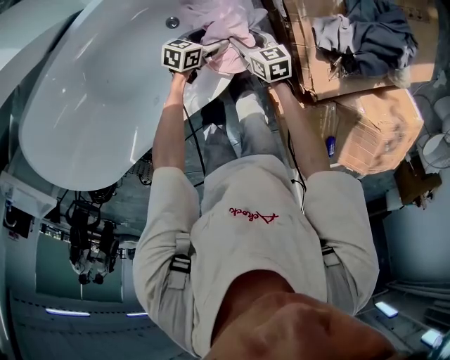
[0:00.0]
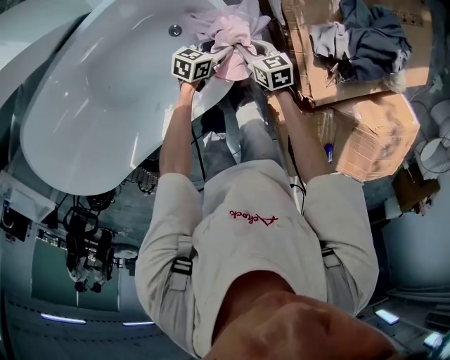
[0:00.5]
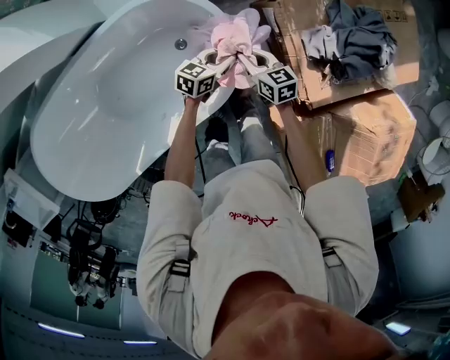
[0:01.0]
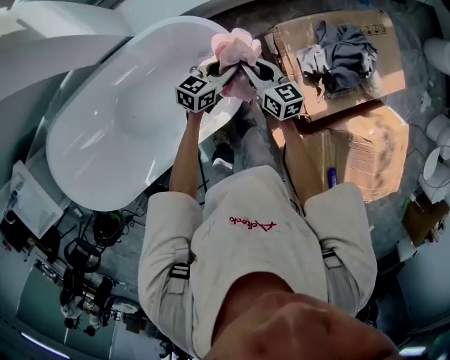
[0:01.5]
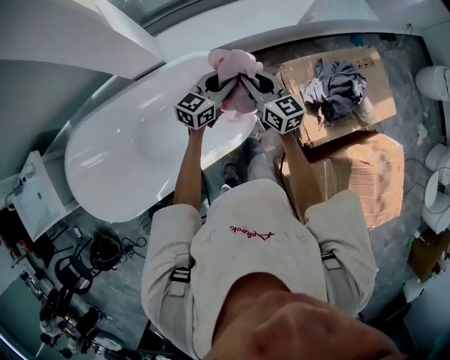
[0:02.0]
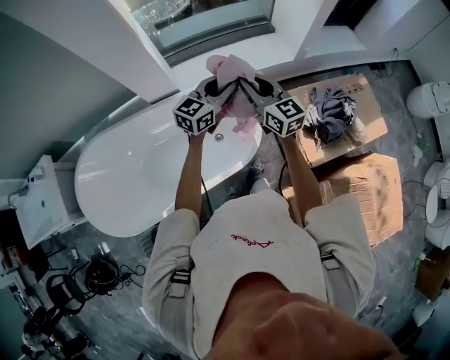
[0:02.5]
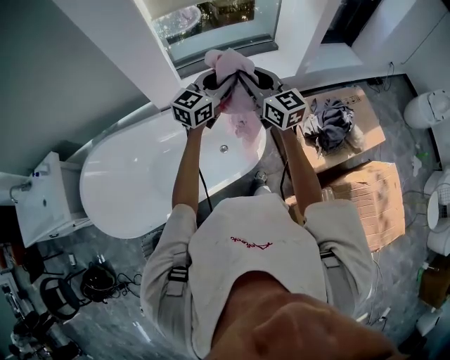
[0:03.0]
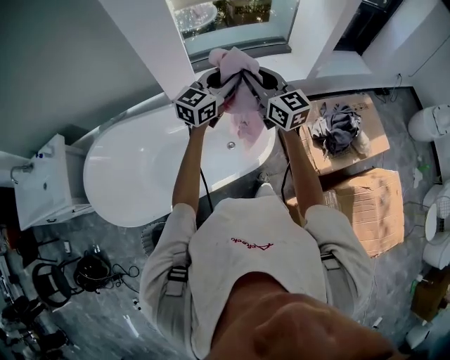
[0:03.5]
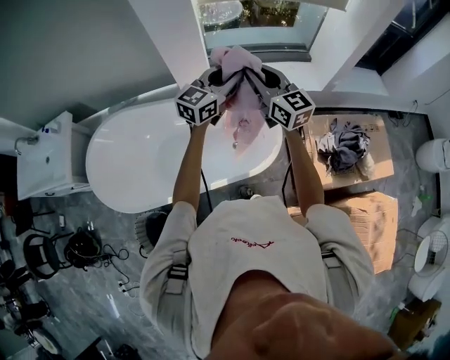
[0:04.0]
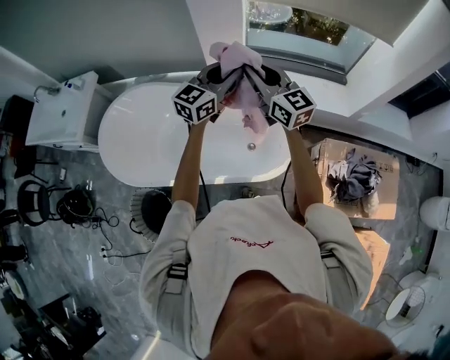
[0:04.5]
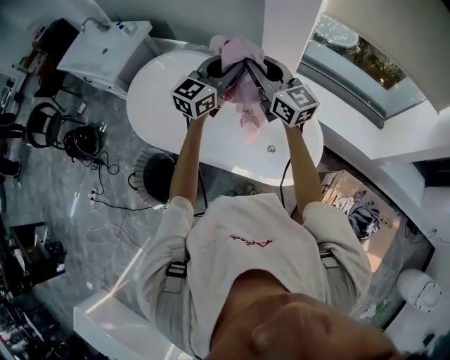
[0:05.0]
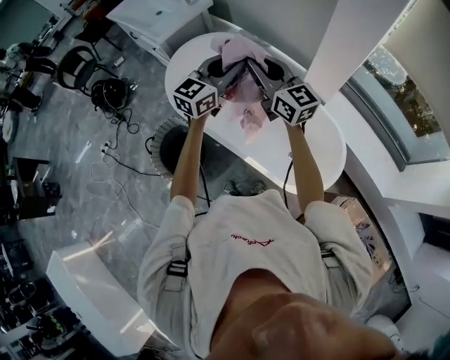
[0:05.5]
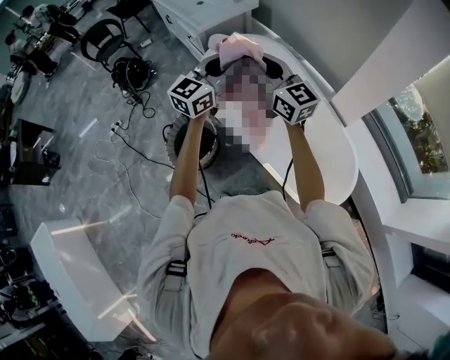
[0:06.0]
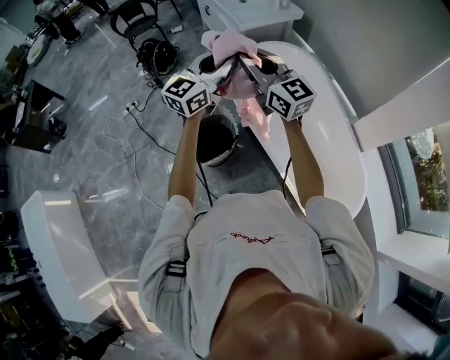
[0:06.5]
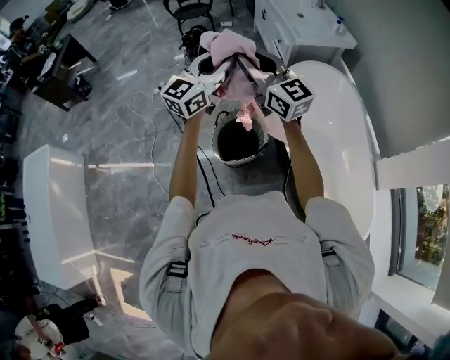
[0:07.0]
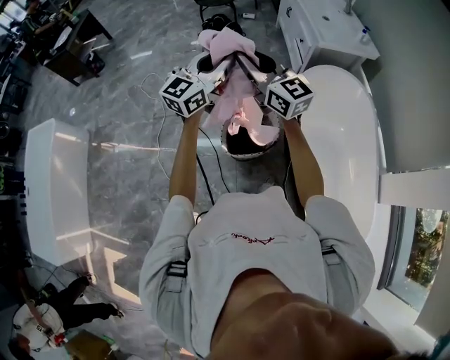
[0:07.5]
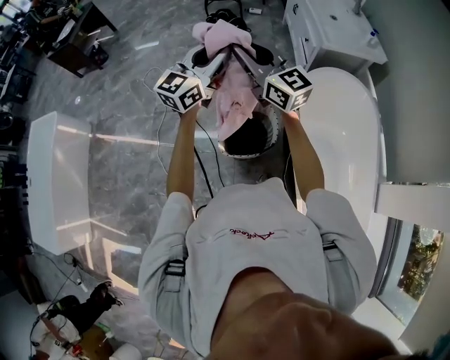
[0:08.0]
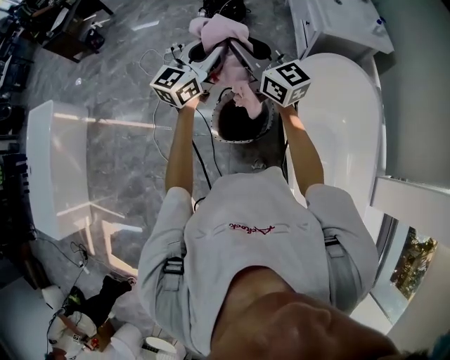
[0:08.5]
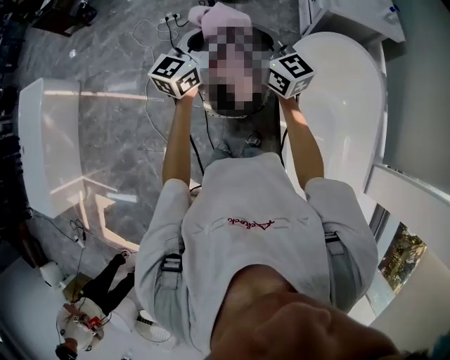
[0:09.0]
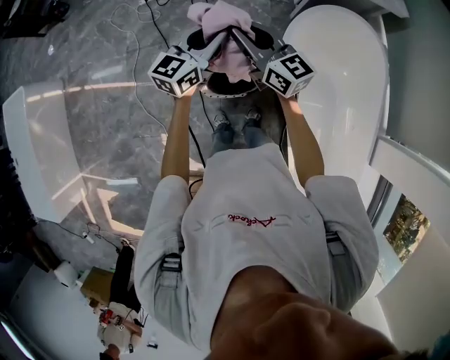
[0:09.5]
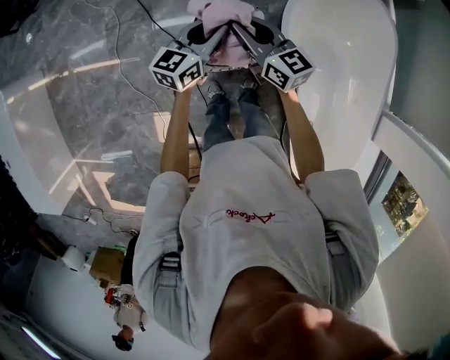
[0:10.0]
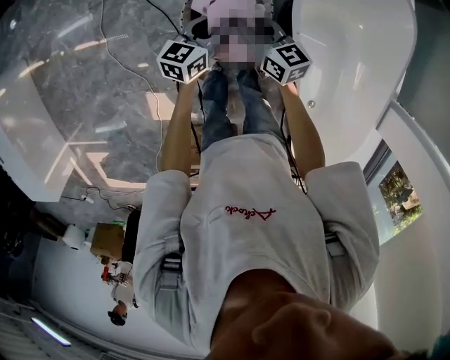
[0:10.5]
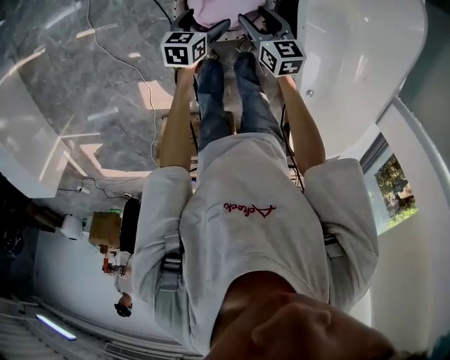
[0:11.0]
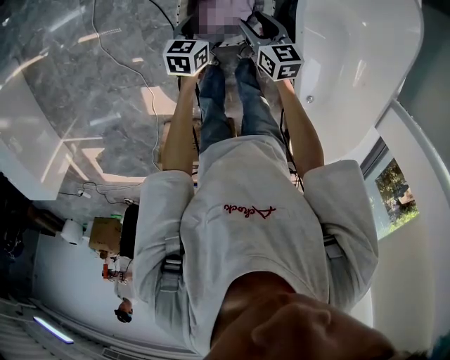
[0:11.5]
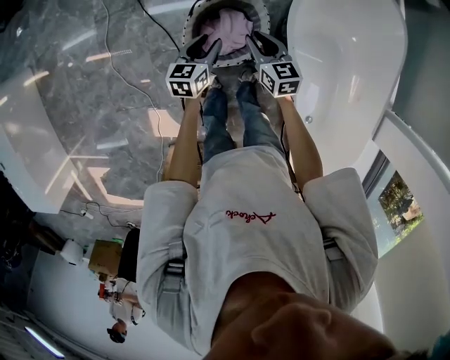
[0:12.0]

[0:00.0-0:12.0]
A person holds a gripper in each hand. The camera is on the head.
0:00.0 to 0:02.0: The two grippers go roughly 50 cm upward. The left gripper swivels approximately 50 degrees, and closes. Meanwhile the right gripper points its fingers some 40 degrees further upward, and closes its fingers.
0:02.0 to 0:04.0: The two grippers go approximately 30 cm upward and to the left. The right gripper changes its angle by roughly 20 degrees; the left gripper turns by some 20 degrees.
0:04.0 to 0:06.0: The pair of grippers is taken approximately 50 cm. The right gripper rotates roughly 70 degrees. The left gripper rotates approximately 60 degrees.
0:06.0 to 0:08.0: The pair of grippers is taken roughly 40 cm. The left gripper swivels some 40 degrees. Meanwhile the right gripper rotates approximately 40 degrees.
0:08.0 to 0:10.0: The two grippers go about 30 cm downward. The right gripper swivels about 30 degrees. Meanwhile the left gripper changes its angle by some 30 degrees.
0:10.0 to 0:12.0: The grippers both shift downward by some 20 cm. The right gripper changes its angle by some 20 degrees, and opens and closes again; the left gripper turns by approximately 20 degrees, and opens and closes again.

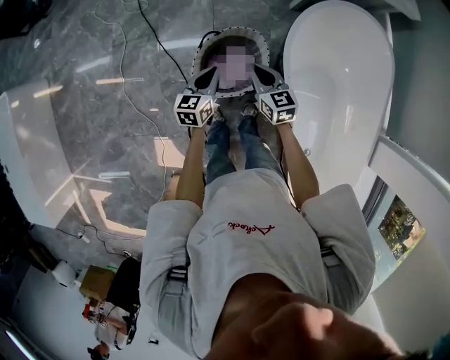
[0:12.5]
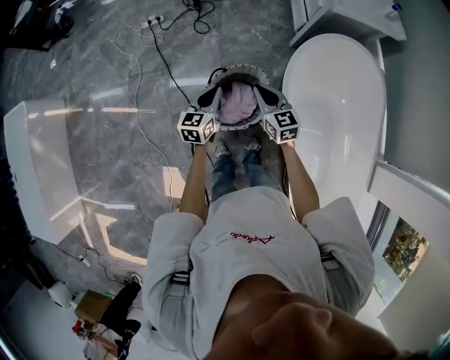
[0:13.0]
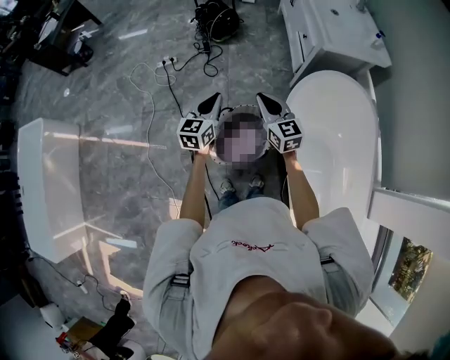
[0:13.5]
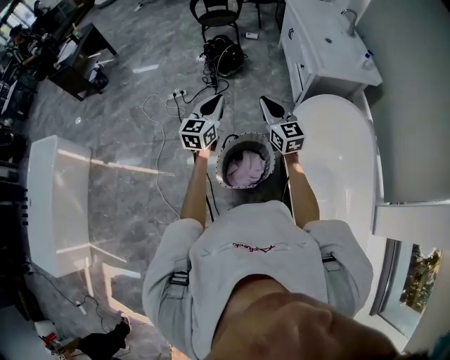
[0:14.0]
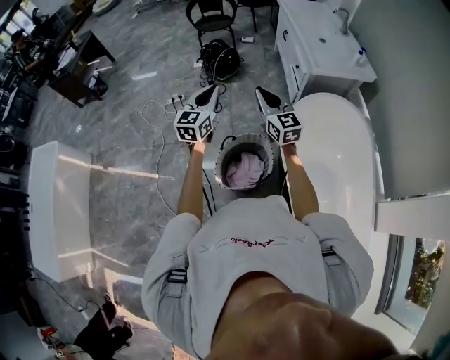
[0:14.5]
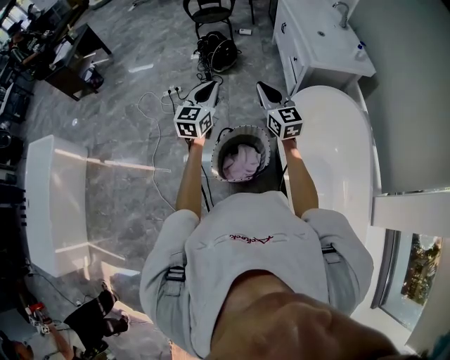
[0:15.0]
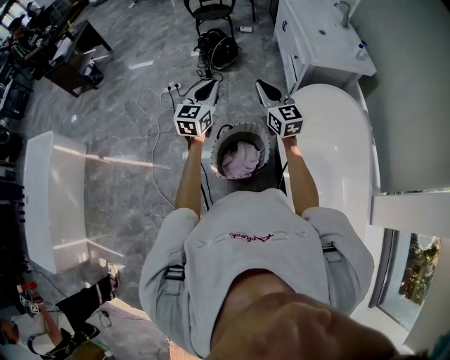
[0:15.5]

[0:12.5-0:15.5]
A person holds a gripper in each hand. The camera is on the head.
0:12.5 to 0:14.0: Both grippers travel together upward, about 30 cm. The left gripper turns by approximately 30 degrees; the right gripper turns by some 30 degrees.
0:14.0 to 0:15.5: The grippers stay close to where they were, moving slightly.

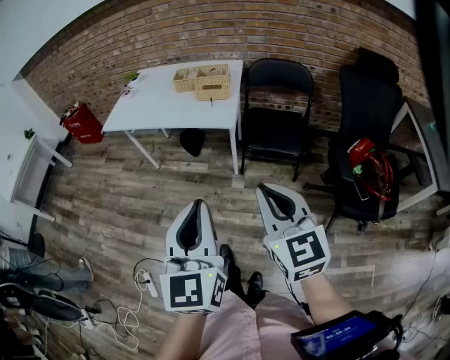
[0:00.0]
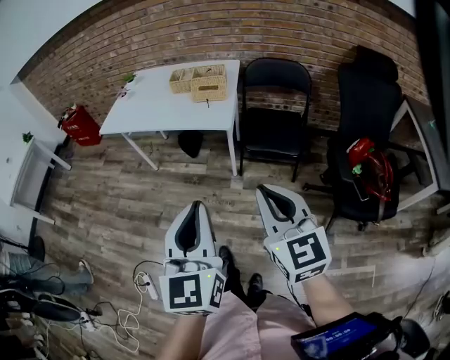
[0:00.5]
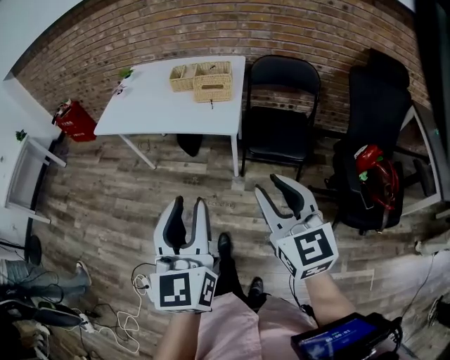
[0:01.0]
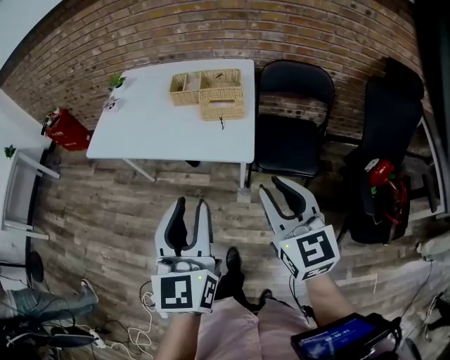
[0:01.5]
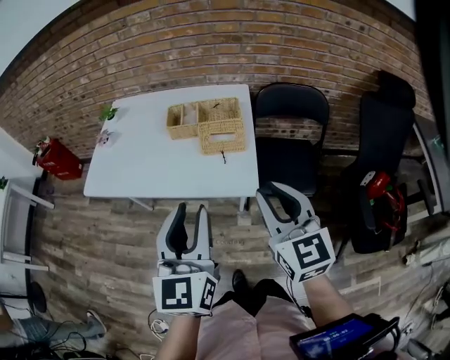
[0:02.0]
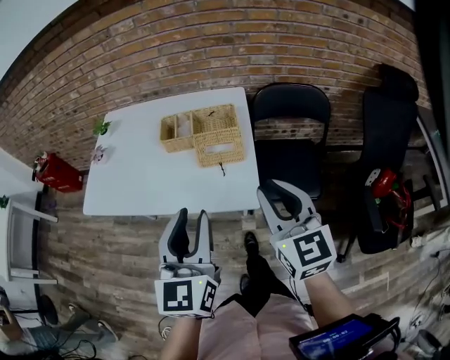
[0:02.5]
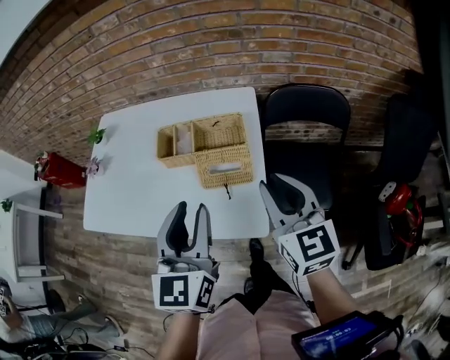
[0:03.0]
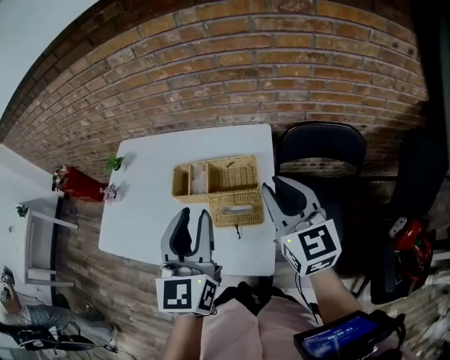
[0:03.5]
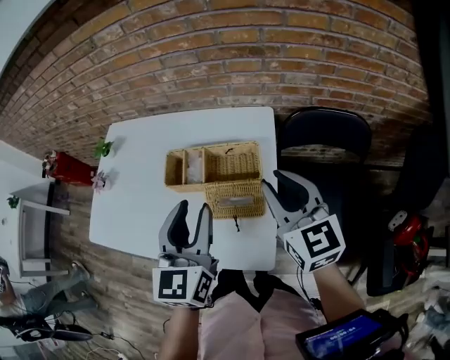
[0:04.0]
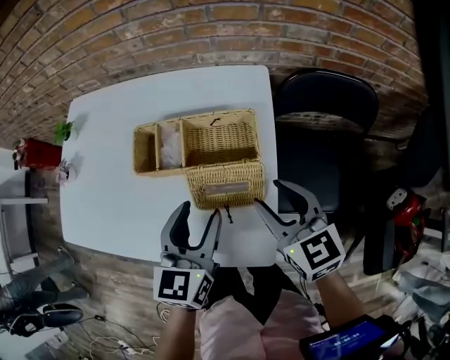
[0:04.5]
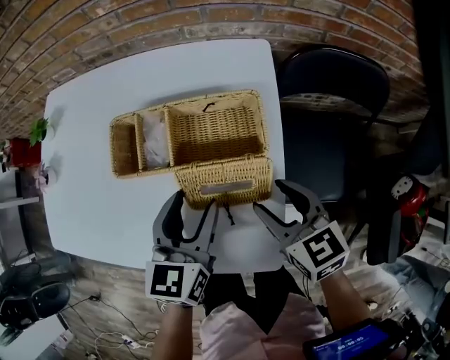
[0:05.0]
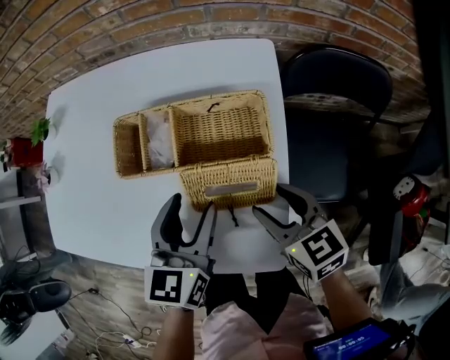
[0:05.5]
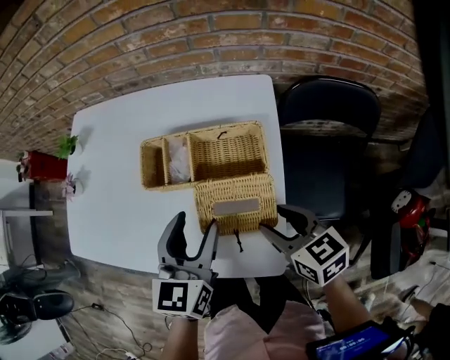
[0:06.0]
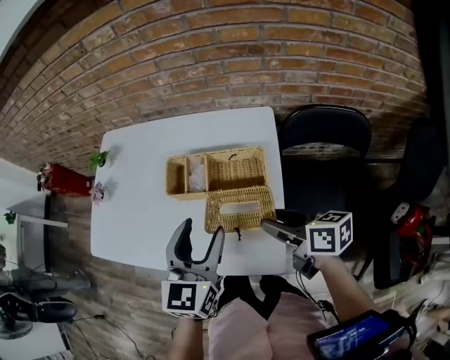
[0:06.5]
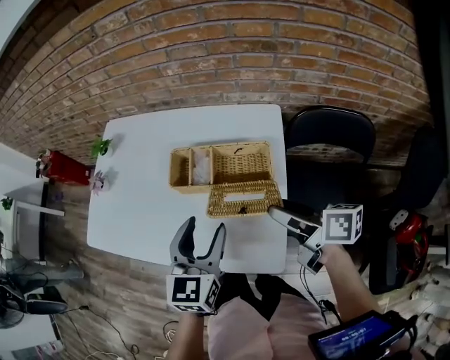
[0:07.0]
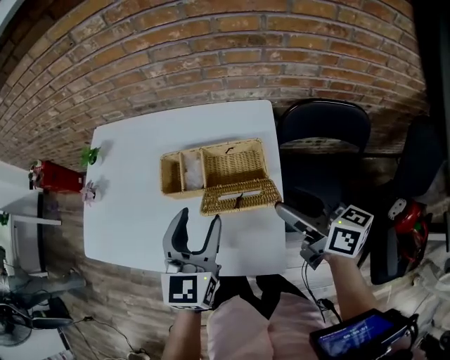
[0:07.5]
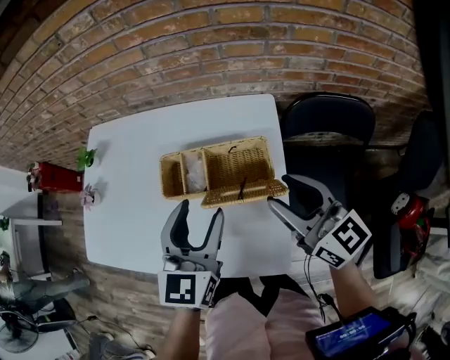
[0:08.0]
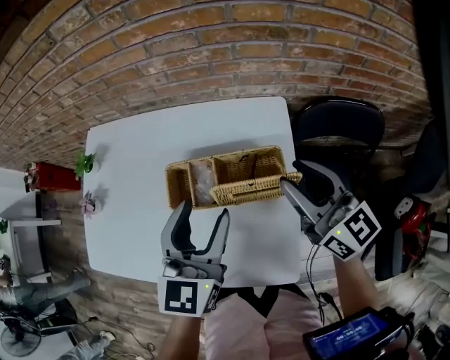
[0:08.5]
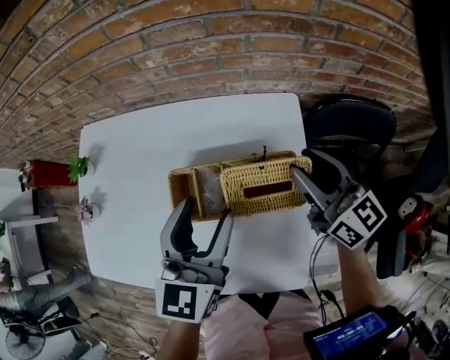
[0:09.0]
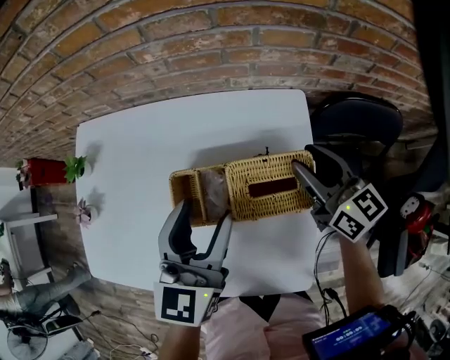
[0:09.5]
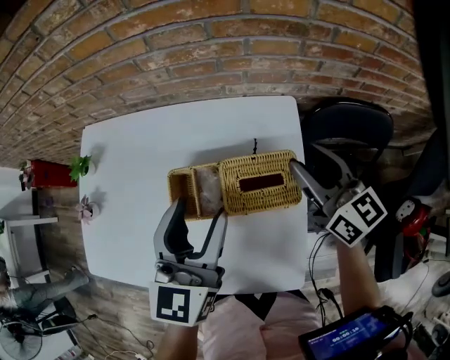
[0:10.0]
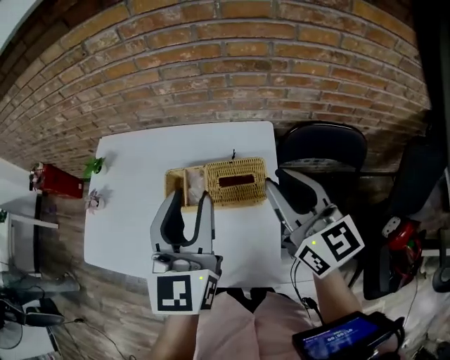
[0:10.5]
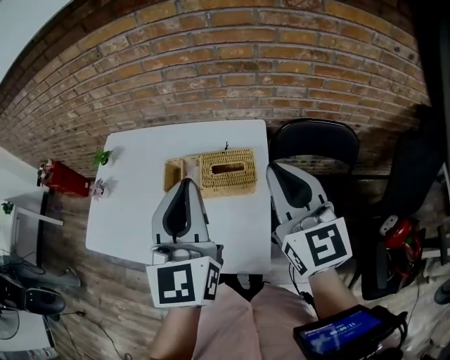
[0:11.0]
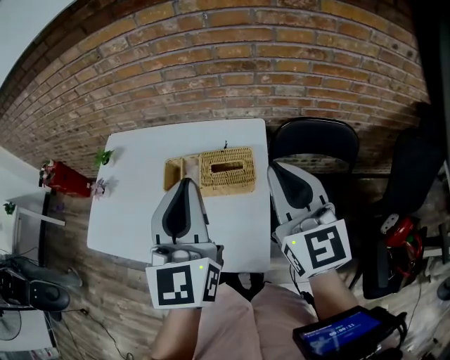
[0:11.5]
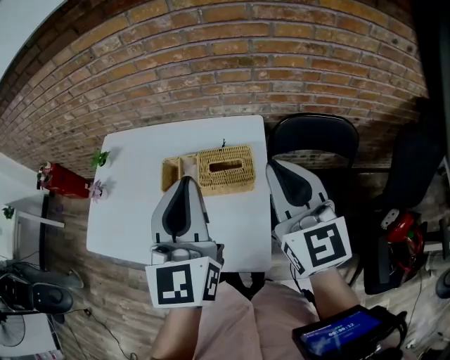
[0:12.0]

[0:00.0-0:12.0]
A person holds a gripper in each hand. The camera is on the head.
0:00.0 to 0:02.0: The grippers both shift forward by approximately 35 cm. The left gripper opens.
0:02.0 to 0:04.0: Both grippers move forward, roughly 30 cm.
0:04.0 to 0:06.0: The grippers both shift downward by approximately 15 cm. The left gripper opens up, while the right gripper turns by about 30 degrees, and opens its fingers.
0:06.0 to 0:08.0: The right gripper heads upward and forward, covering about 15 cm, and rotates some 30 degrees; the left gripper moves upward, about 10 cm.
0:08.0 to 0:10.0: The left gripper heads forward, covering roughly 10 cm; the right gripper is displaced forward by approximately 15 cm.
0:10.0 to 0:12.0: Both grippers travel together upward and backward, roughly 20 cm. The right gripper swivels about 20 degrees, and closes its fingers; the left gripper closes its fingers.
